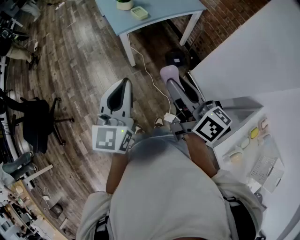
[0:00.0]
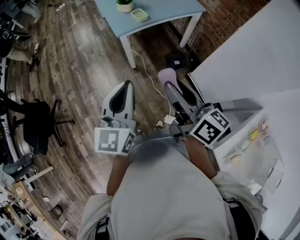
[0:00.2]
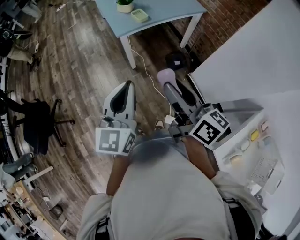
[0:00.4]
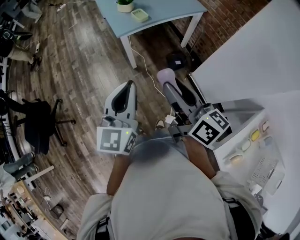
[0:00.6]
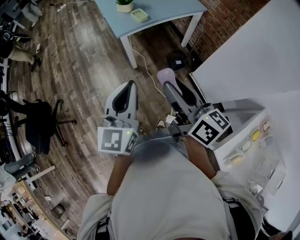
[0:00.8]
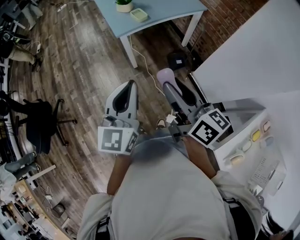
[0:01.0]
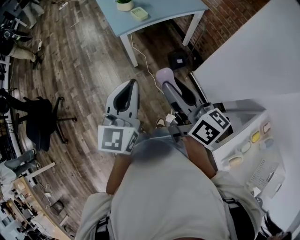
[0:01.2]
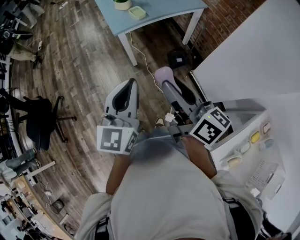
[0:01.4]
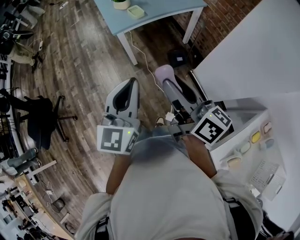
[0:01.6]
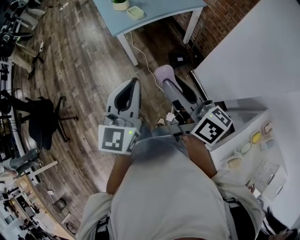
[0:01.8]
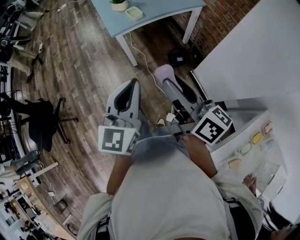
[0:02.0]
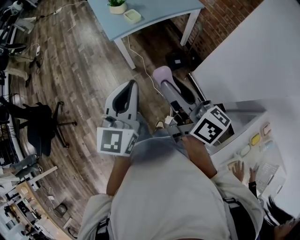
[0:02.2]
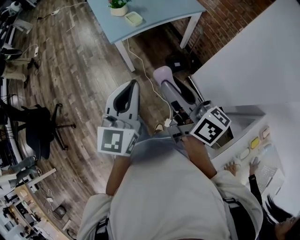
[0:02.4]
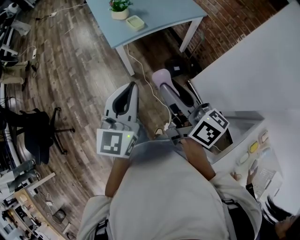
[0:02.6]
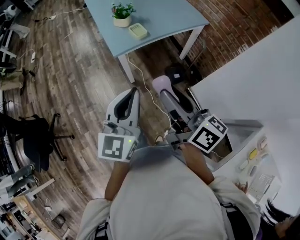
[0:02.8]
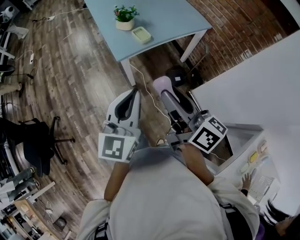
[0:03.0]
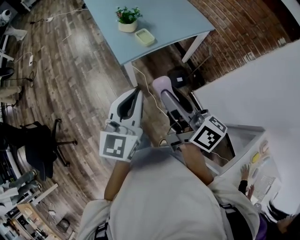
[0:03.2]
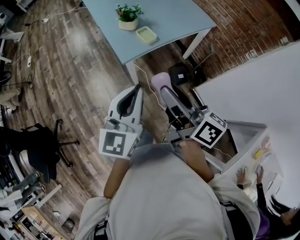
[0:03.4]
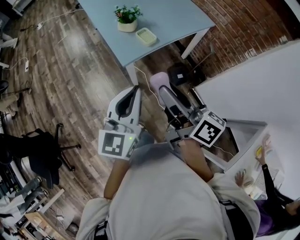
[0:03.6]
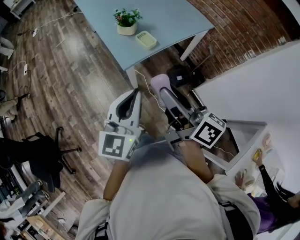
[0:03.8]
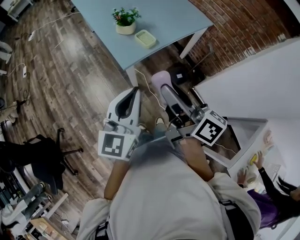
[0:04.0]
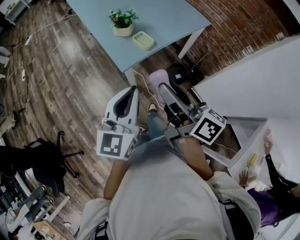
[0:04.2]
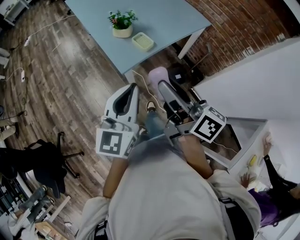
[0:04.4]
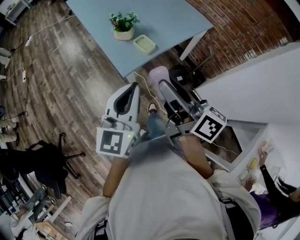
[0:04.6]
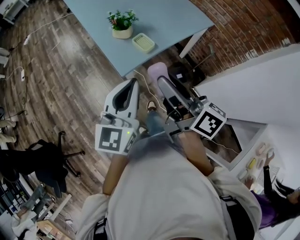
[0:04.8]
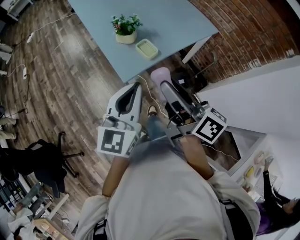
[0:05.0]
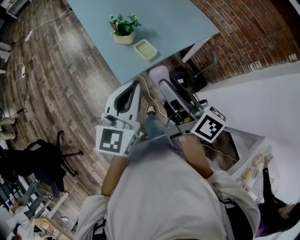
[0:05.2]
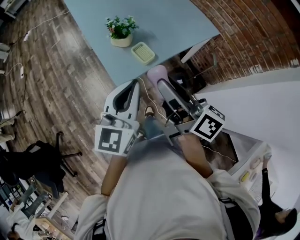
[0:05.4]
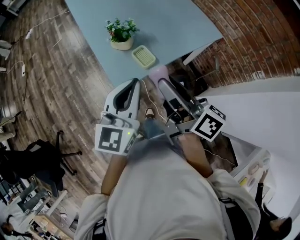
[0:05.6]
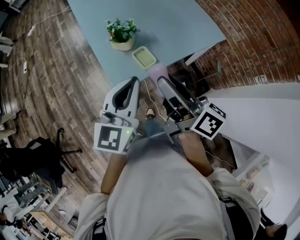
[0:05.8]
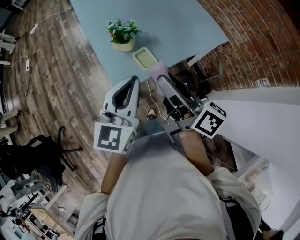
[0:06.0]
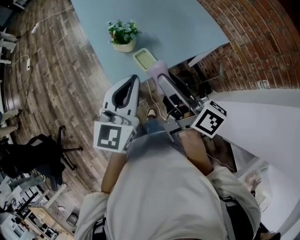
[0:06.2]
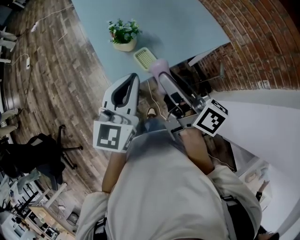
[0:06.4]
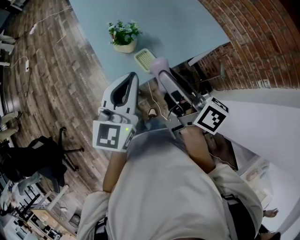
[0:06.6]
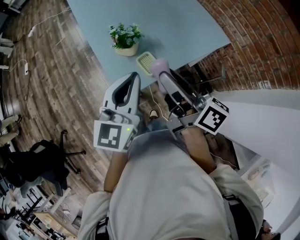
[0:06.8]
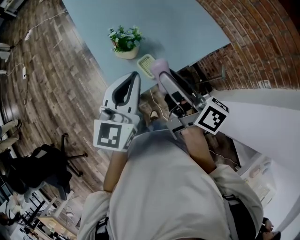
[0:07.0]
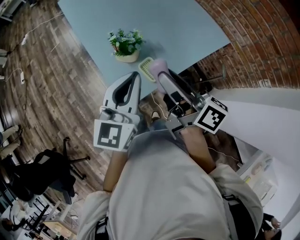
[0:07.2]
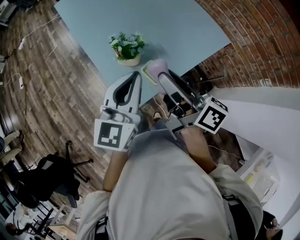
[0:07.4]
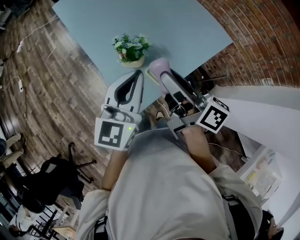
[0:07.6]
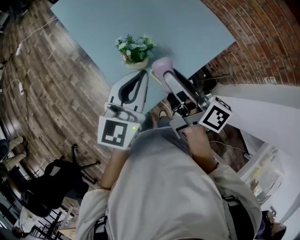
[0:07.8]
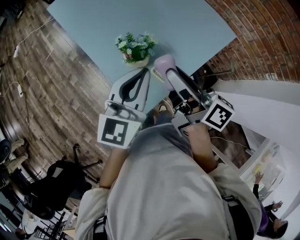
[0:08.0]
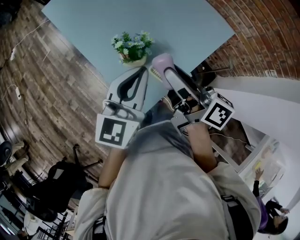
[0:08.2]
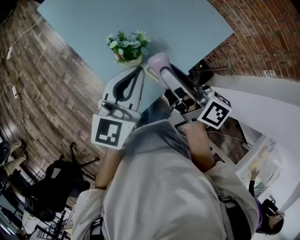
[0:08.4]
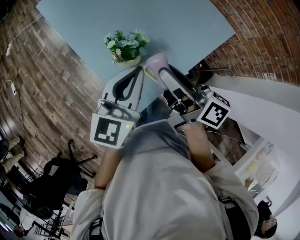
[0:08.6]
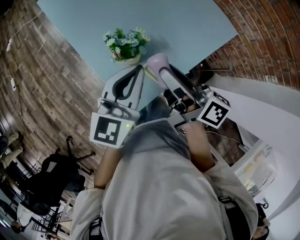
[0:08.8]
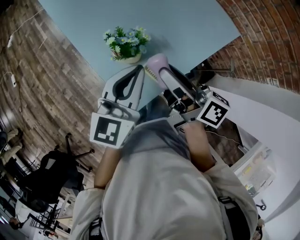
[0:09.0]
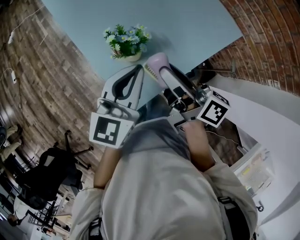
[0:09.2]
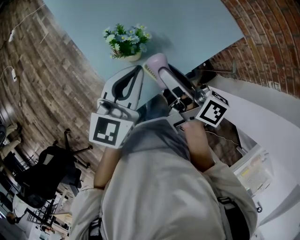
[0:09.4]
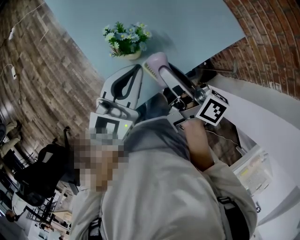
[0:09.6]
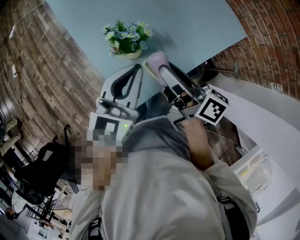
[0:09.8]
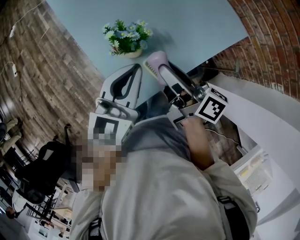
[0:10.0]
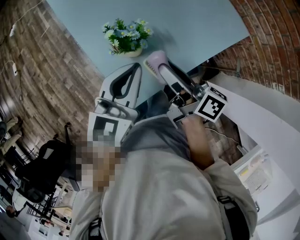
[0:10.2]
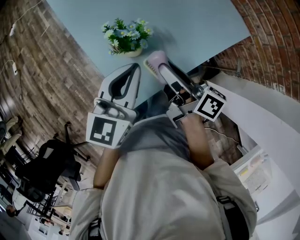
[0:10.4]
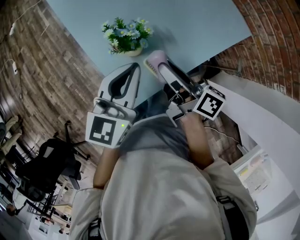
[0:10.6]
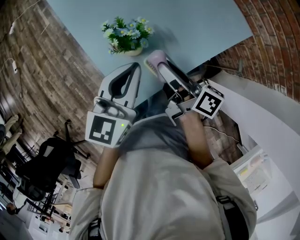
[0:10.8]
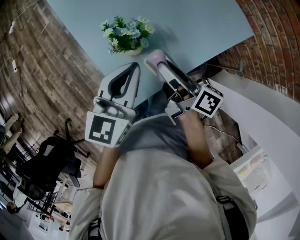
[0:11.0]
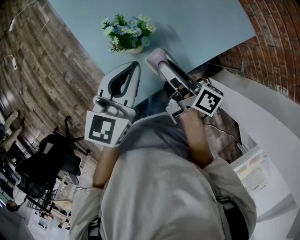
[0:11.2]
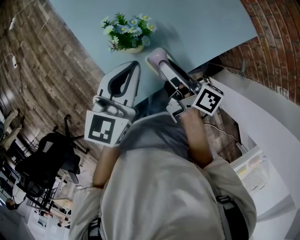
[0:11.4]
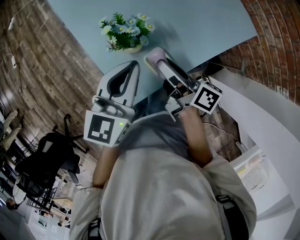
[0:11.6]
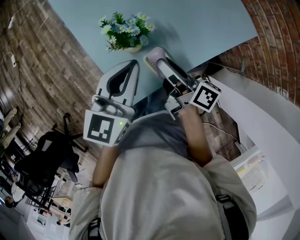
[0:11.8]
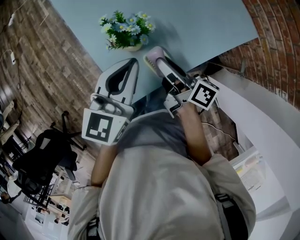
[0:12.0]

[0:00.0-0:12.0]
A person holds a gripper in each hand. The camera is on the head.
0:00.0 to 0:01.6: The left gripper travels to the right by roughly 10 cm.
0:01.6 to 0:03.0: The right gripper moves forward and to the left, roughly 20 cm, while the left gripper travels forward by approximately 15 cm.
0:03.0 to 0:04.4: Both grippers travel together forward and to the left, roughly 15 cm.
0:04.4 to 0:06.0: The grippers both shift forward by some 20 cm.
0:06.0 to 0:07.6: The two grippers go approximately 15 cm forward and to the left.
0:07.6 to 0:09.0: The two grippers go about 5 cm downward.
0:09.0 to 0:10.4: The right gripper moves downward, approximately 5 cm.
0:10.4 to 0:12.0: The right gripper moves downward, roughly 5 cm.

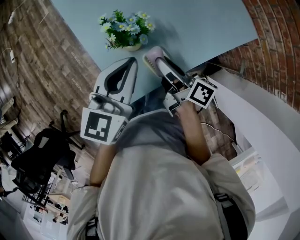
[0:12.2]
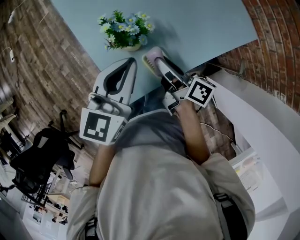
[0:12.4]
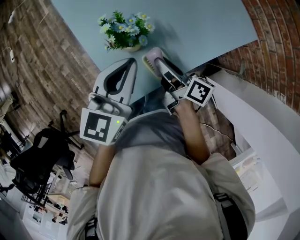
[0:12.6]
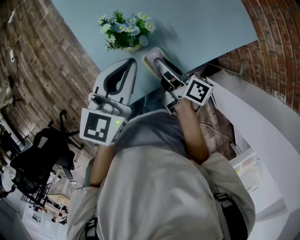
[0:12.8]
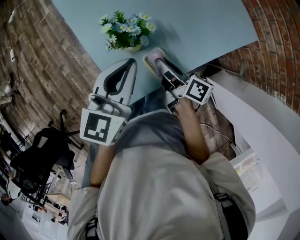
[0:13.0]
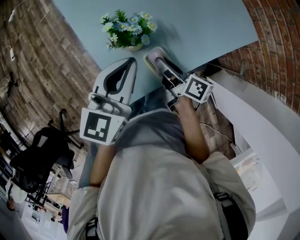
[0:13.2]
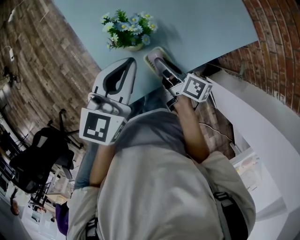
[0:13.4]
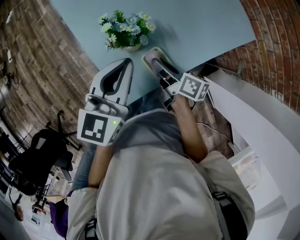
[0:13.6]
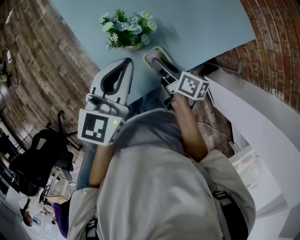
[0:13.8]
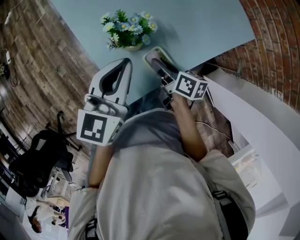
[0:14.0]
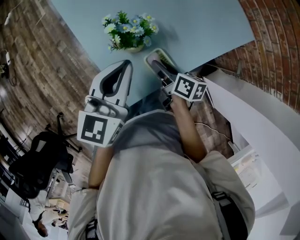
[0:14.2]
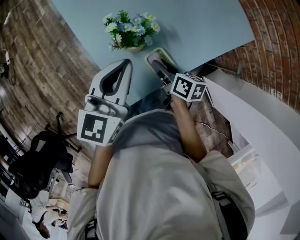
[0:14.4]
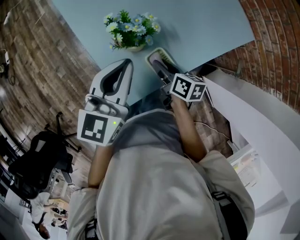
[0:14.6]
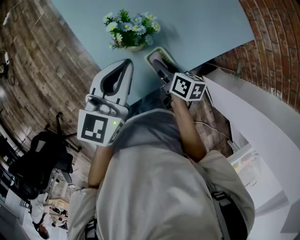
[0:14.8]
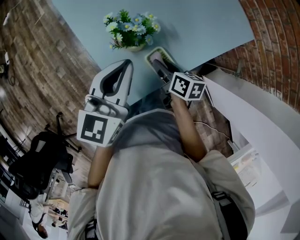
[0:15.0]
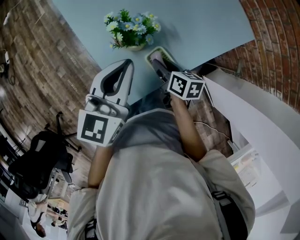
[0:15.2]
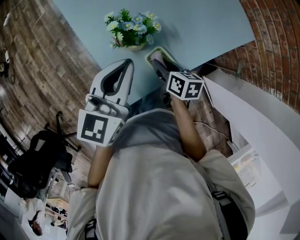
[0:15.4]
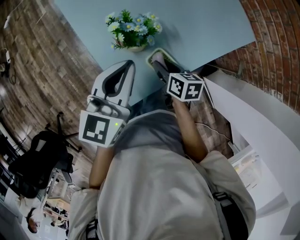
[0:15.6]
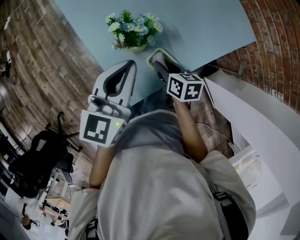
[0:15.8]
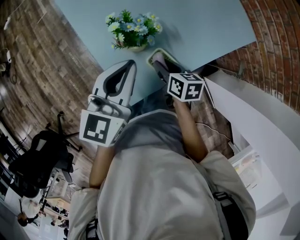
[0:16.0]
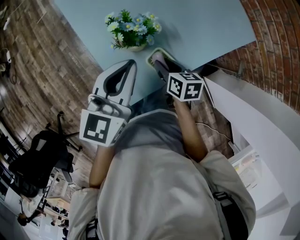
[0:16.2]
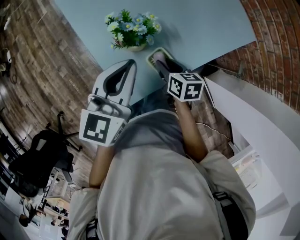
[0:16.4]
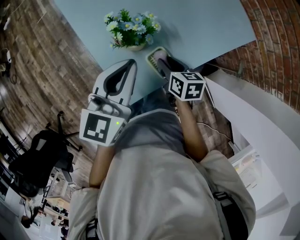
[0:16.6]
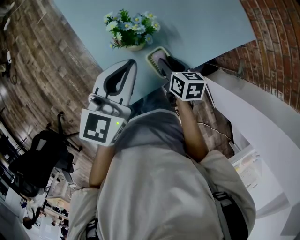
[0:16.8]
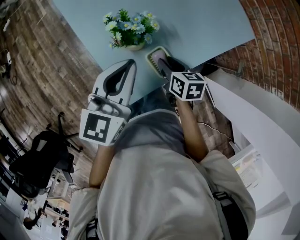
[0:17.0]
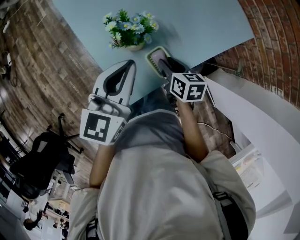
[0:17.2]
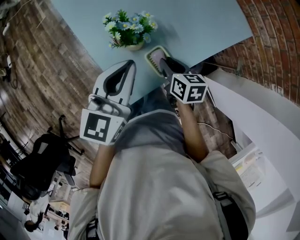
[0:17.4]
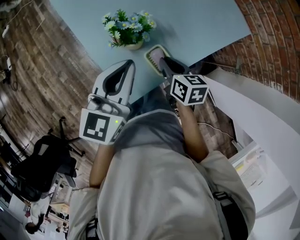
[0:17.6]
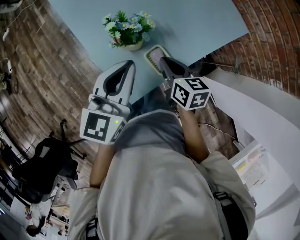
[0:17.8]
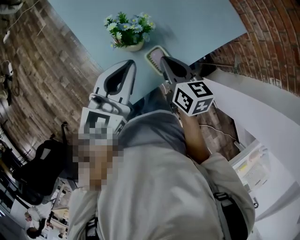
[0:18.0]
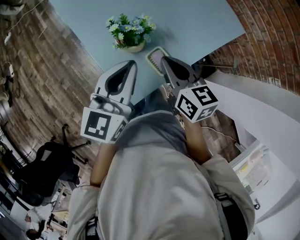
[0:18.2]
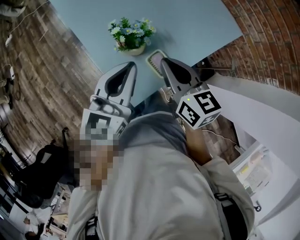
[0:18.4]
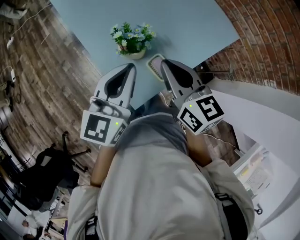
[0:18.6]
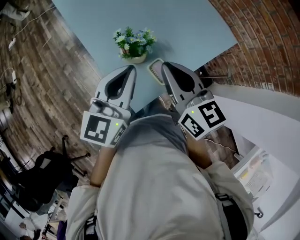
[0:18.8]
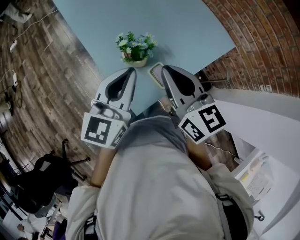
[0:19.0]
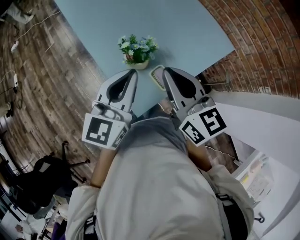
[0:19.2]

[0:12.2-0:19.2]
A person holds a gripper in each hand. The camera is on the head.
0:12.2 to 0:13.6: The right gripper is displaced downward by roughly 5 cm.
0:13.6 to 0:15.0: The right gripper swivels roughly 20 degrees.
0:15.0 to 0:16.4: There are only small adjustments of the grippers.
0:16.4 to 0:17.8: The right gripper travels upward by approximately 10 cm, and closes up.
0:17.8 to 0:19.2: The left gripper travels upward by approximately 10 cm. The right gripper shifts about 25 cm upward, and changes its angle by approximately 30 degrees.

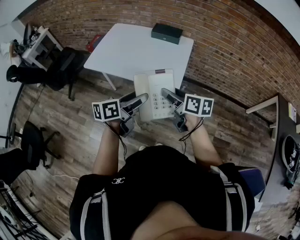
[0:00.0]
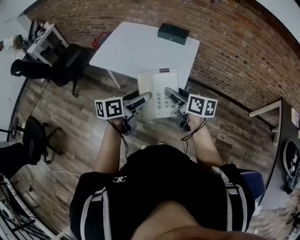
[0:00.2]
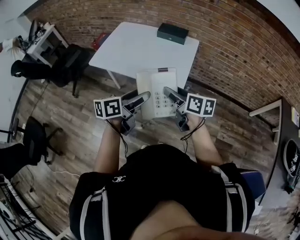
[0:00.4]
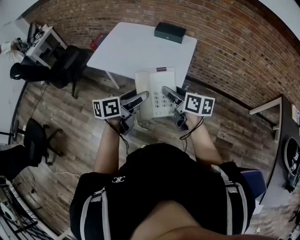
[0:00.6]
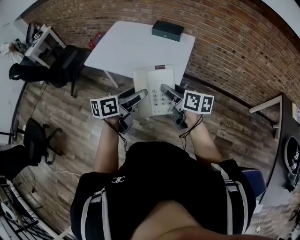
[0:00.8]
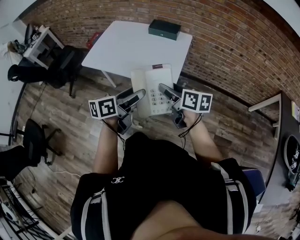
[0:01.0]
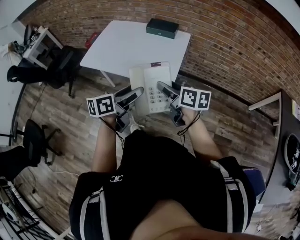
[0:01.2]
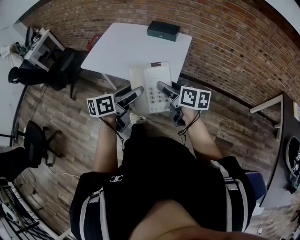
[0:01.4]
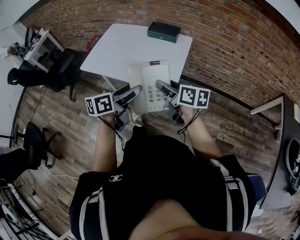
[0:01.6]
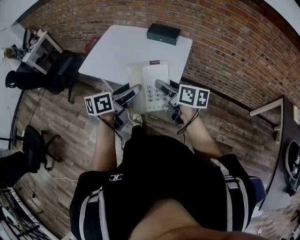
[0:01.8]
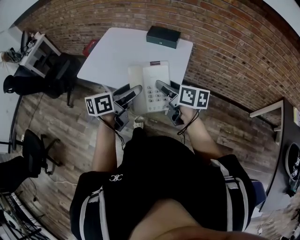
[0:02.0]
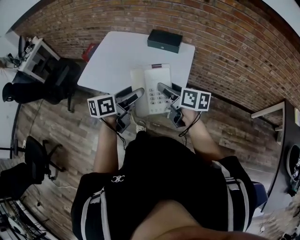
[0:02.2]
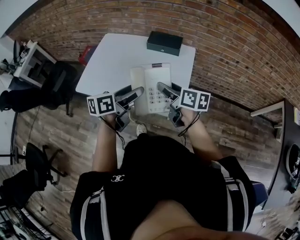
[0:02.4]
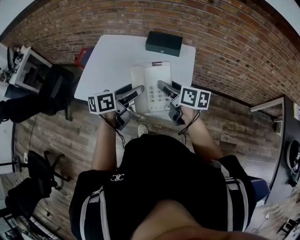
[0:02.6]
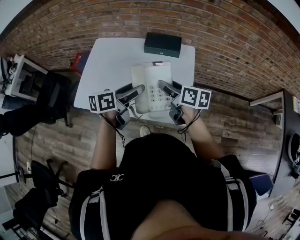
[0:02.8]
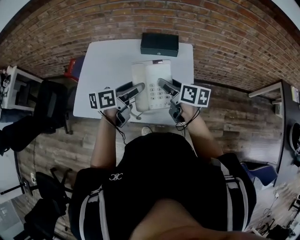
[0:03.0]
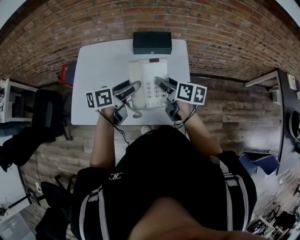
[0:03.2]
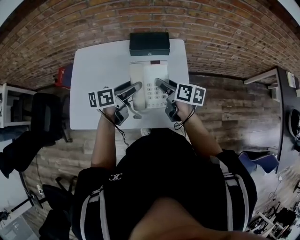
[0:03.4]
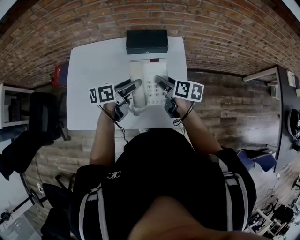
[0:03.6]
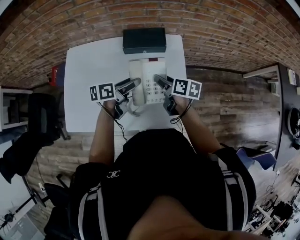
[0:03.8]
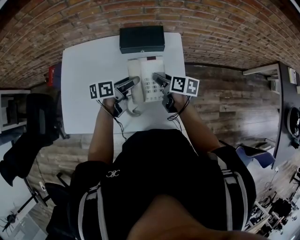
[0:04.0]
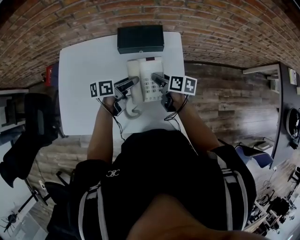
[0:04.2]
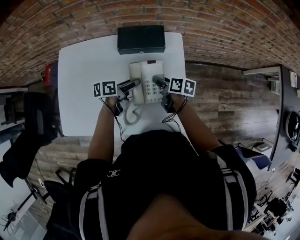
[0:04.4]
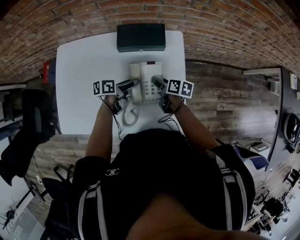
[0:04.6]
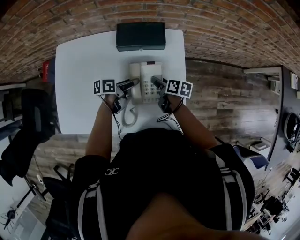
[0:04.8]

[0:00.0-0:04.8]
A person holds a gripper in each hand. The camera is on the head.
0:00.0 to 0:01.6: The right gripper changes place by roughly 5 cm; the left gripper moves roughly 5 cm.
0:01.6 to 0:03.2: Both grippers move forward, some 35 cm. The left gripper swivels approximately 20 degrees, while the right gripper changes its angle by about 30 degrees.
0:03.2 to 0:04.8: The two grippers go about 25 cm downward and forward. The right gripper swivels approximately 20 degrees. Meanwhile the left gripper changes its angle by some 20 degrees.
